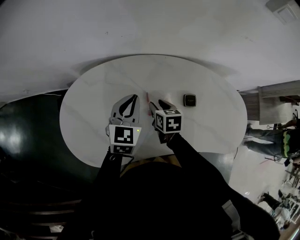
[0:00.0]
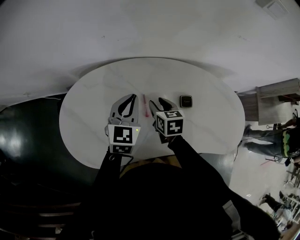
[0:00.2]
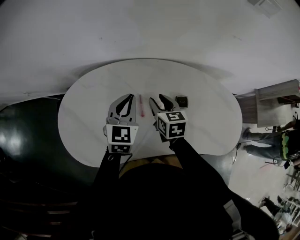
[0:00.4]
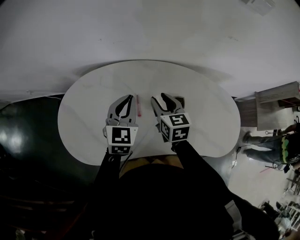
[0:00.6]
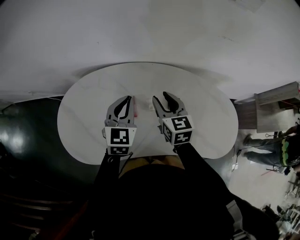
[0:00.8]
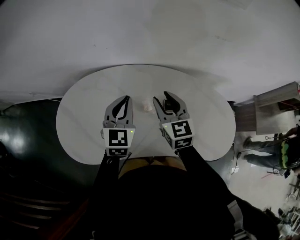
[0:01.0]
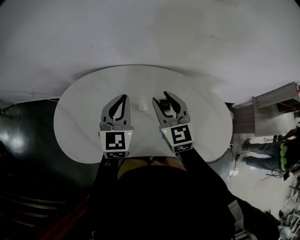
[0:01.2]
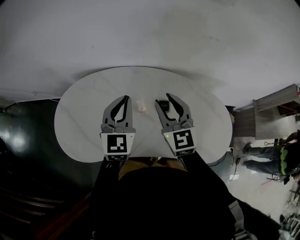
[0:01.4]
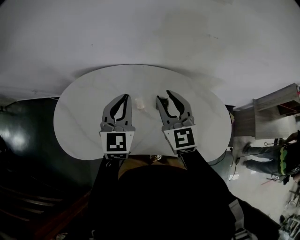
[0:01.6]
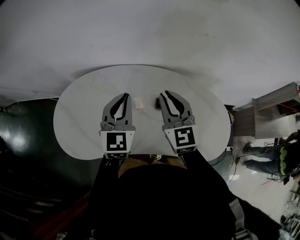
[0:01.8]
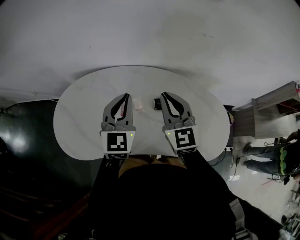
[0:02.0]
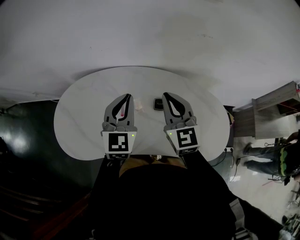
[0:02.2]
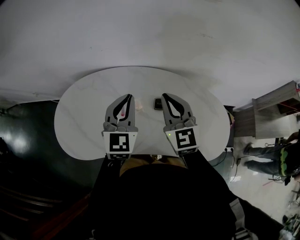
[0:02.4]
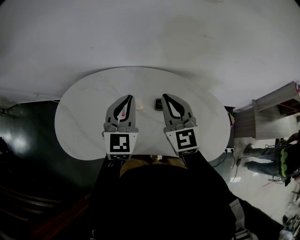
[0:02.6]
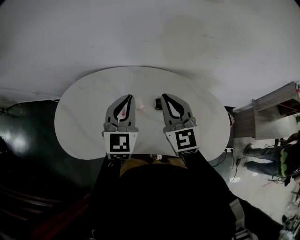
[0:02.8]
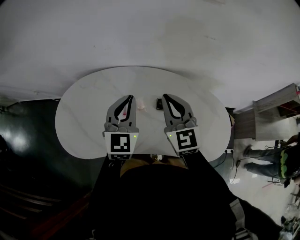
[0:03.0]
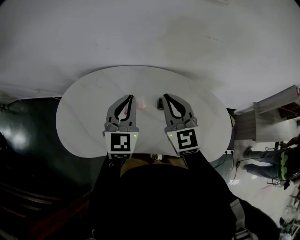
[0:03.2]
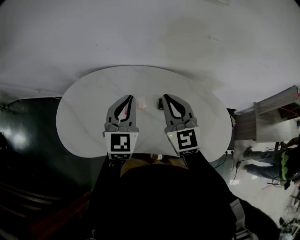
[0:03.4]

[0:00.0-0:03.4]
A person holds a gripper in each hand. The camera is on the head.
0.0 to 1.6 s: The right gripper is displaced upward and to the right by about 30 cm, and tips its fingers upward by about 40 degrees, while the left gripper moves to the right and upward, approximately 15 cm.
1.6 to 3.4 s: The right gripper closes its fingers.

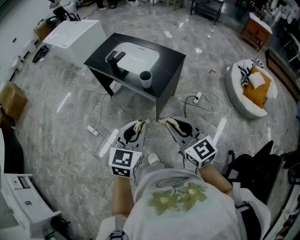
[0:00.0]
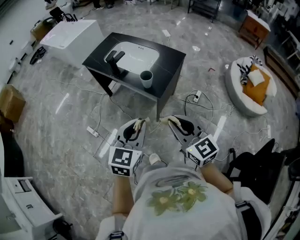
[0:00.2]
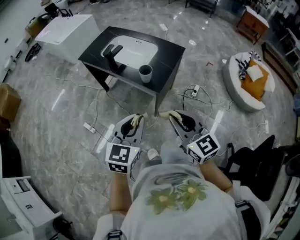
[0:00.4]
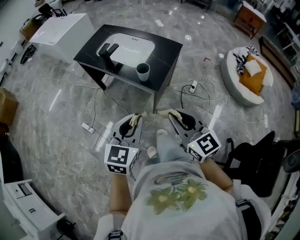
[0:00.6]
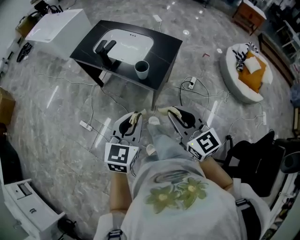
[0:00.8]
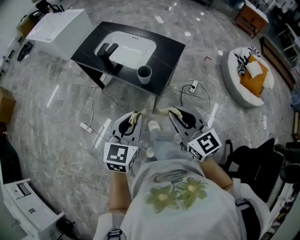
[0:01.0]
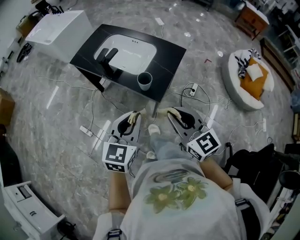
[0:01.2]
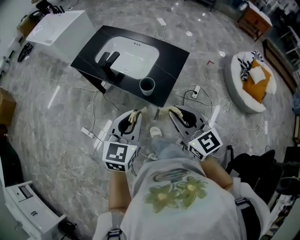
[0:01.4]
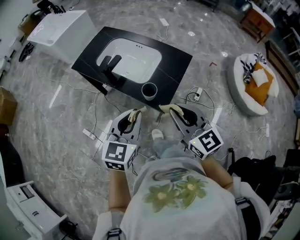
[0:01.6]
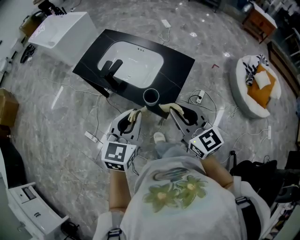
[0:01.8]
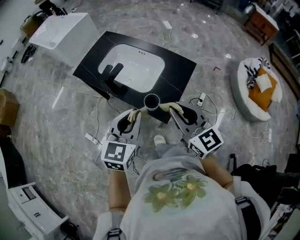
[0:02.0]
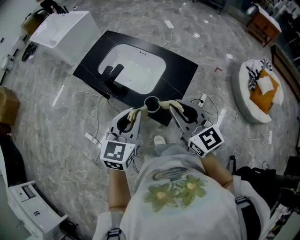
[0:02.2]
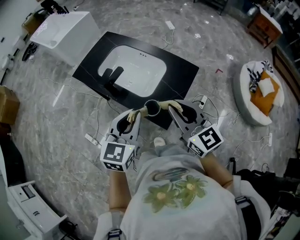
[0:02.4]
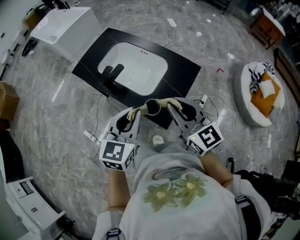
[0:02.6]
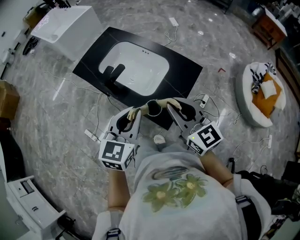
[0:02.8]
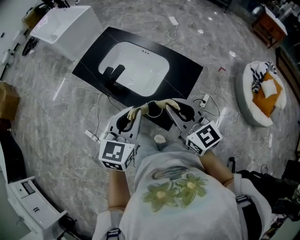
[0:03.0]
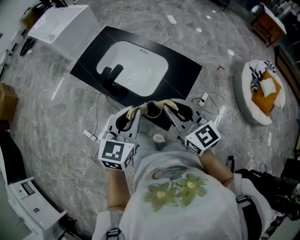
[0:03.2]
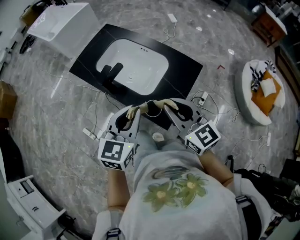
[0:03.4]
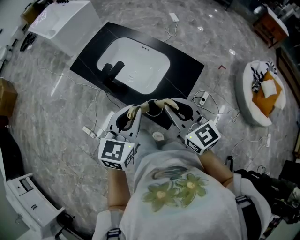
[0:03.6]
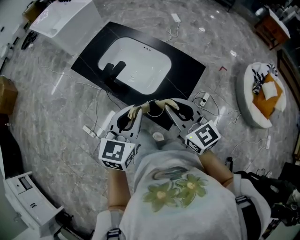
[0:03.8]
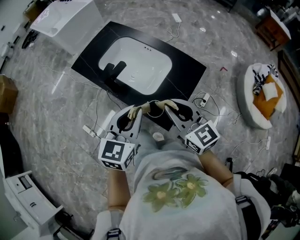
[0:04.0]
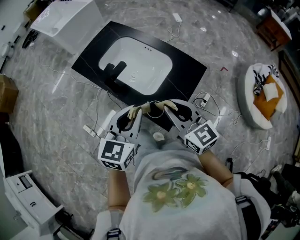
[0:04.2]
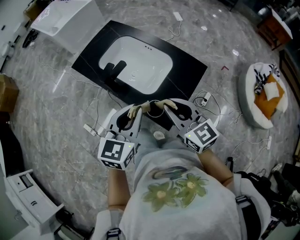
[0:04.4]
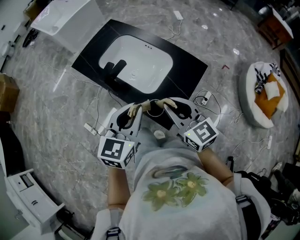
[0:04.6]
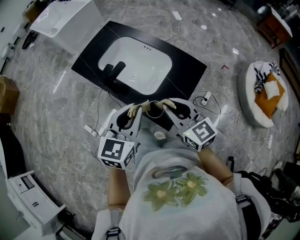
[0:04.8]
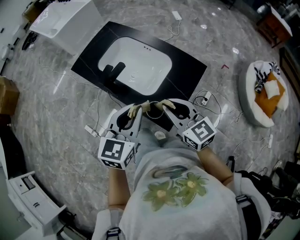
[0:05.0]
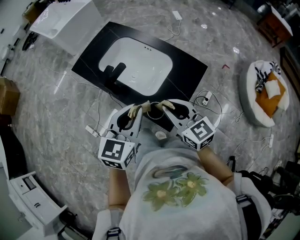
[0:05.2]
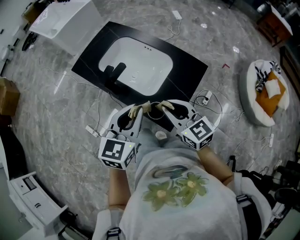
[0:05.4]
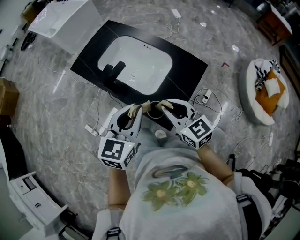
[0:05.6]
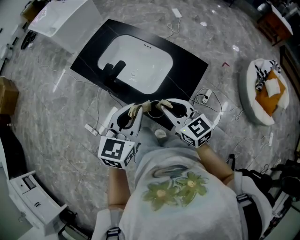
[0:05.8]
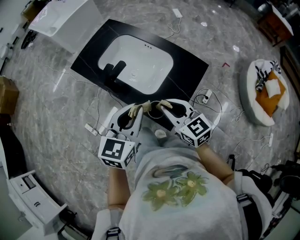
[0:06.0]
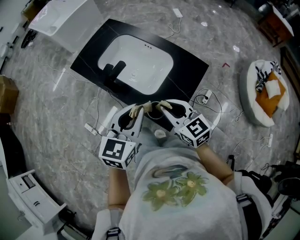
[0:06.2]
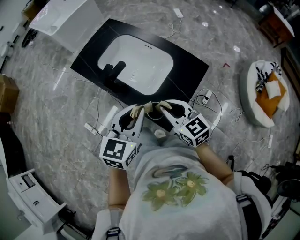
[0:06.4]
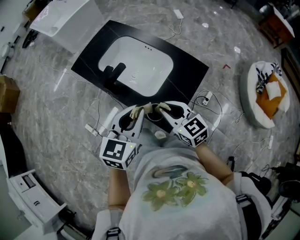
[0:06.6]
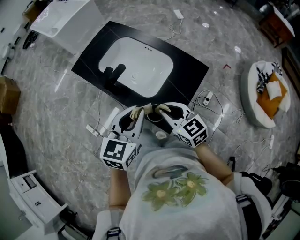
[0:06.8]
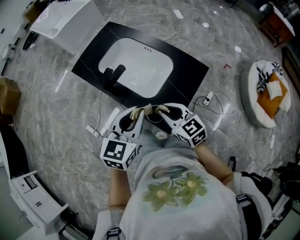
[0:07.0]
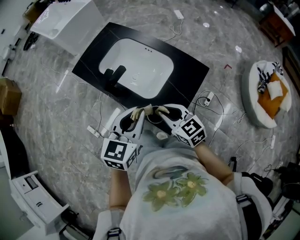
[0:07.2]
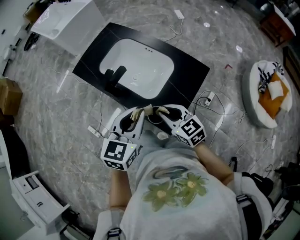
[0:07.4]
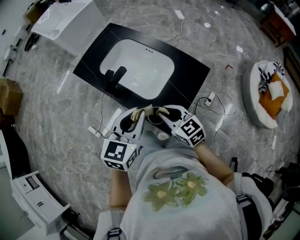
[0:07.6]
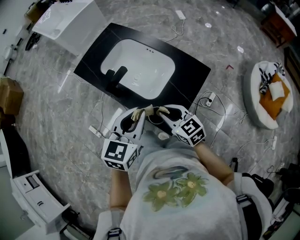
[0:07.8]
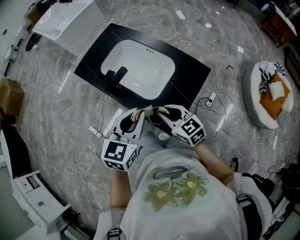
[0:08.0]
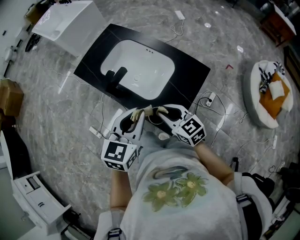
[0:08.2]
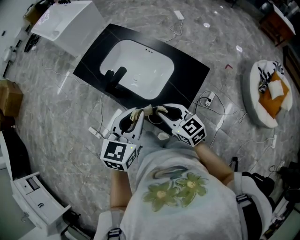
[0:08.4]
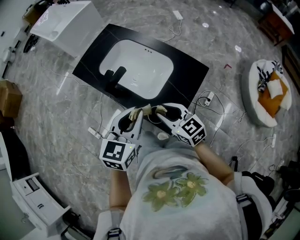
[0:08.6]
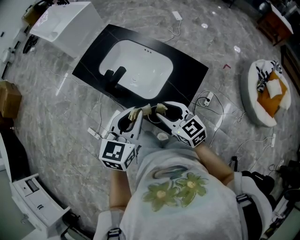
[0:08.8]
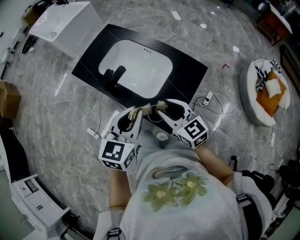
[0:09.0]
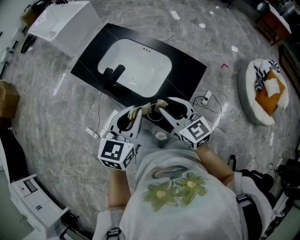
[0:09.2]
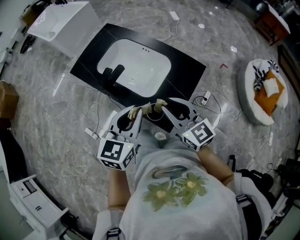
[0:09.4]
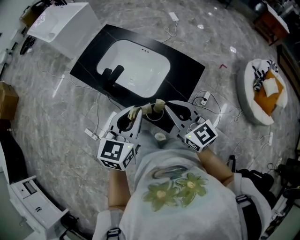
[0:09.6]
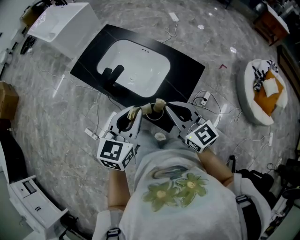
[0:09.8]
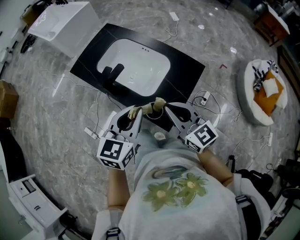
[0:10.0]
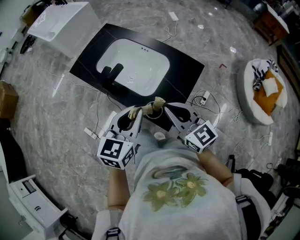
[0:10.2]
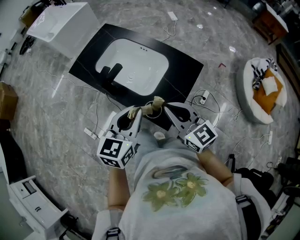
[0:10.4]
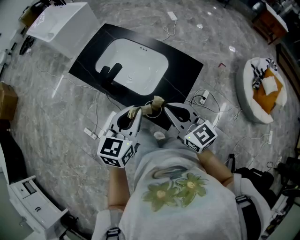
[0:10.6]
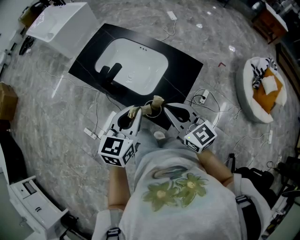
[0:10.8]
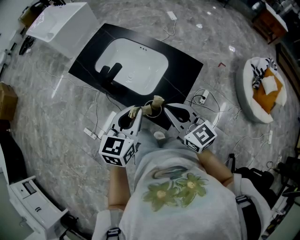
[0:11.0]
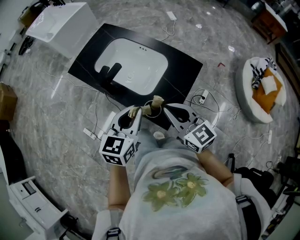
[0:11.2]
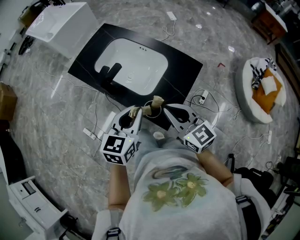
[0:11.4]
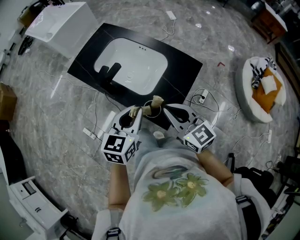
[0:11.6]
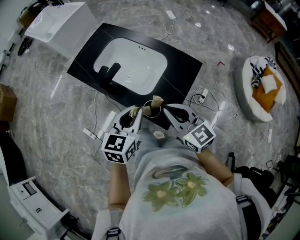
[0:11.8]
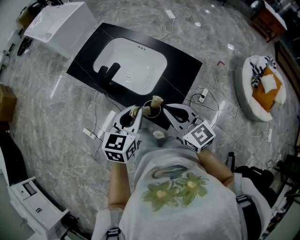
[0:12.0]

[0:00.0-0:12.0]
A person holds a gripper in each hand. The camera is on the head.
0.0 to 1.6 s: Both grippers travel together forward, roughly 25 cm.
1.6 to 3.0 s: The two grippers go approximately 15 cm forward.
3.0 to 4.4 s: There are only small adjustments of the grippers.
4.4 to 6.0 s: The right gripper moves downward, roughly 5 cm.
6.0 to 7.6 s: The right gripper travels downward by approximately 5 cm.
7.6 to 9.0 s: The grippers move only a little.
9.0 to 10.4 s: The right gripper moves some 5 cm, and closes its fingers.
10.4 to 12.0 s: The grippers move only a little.

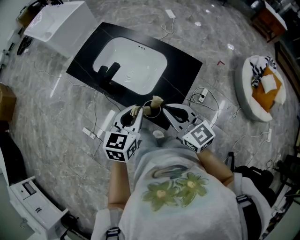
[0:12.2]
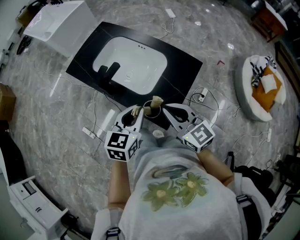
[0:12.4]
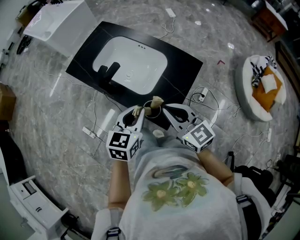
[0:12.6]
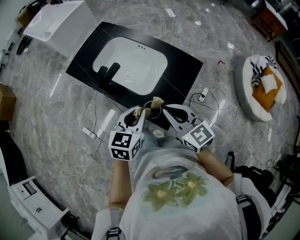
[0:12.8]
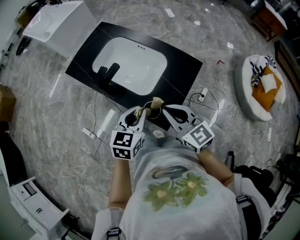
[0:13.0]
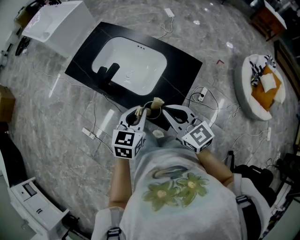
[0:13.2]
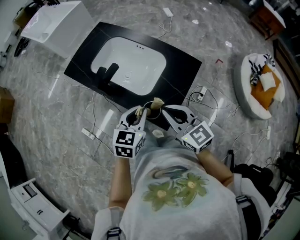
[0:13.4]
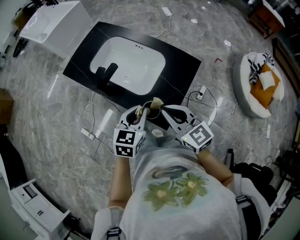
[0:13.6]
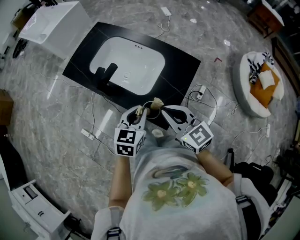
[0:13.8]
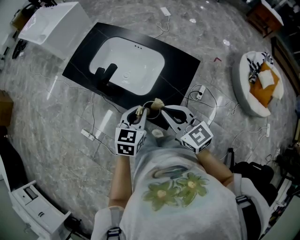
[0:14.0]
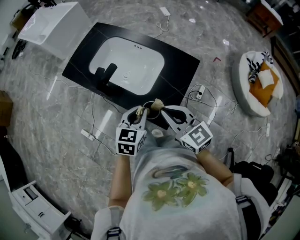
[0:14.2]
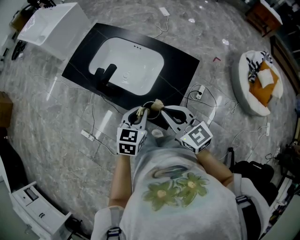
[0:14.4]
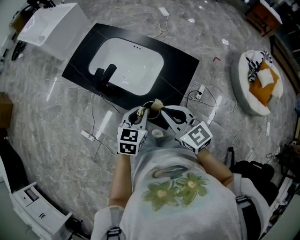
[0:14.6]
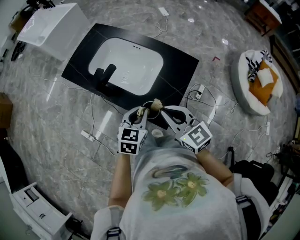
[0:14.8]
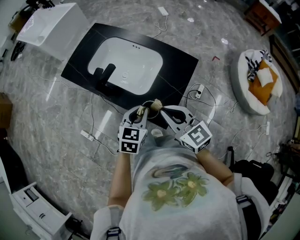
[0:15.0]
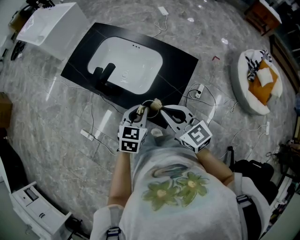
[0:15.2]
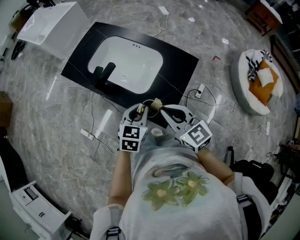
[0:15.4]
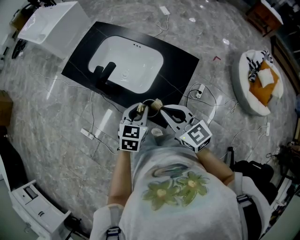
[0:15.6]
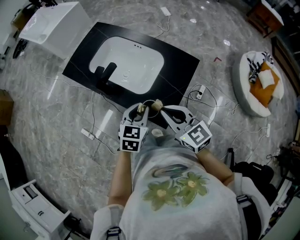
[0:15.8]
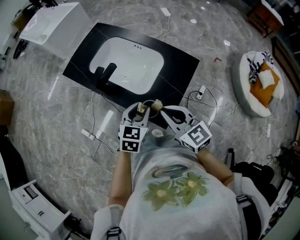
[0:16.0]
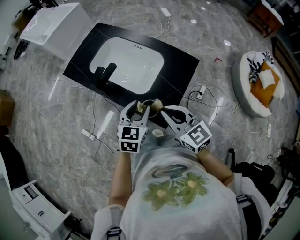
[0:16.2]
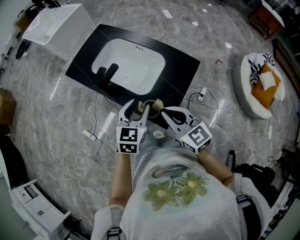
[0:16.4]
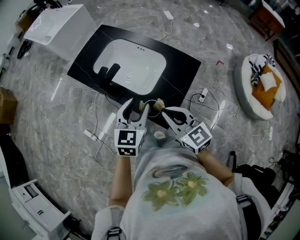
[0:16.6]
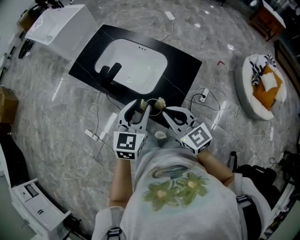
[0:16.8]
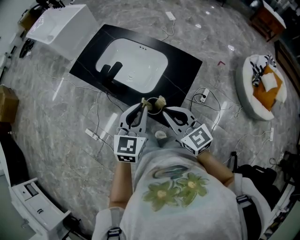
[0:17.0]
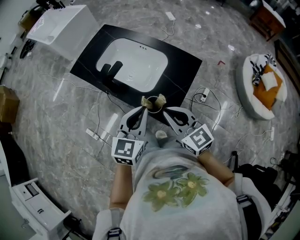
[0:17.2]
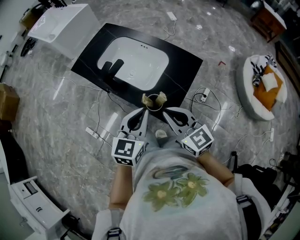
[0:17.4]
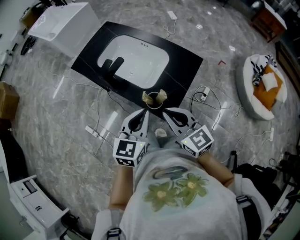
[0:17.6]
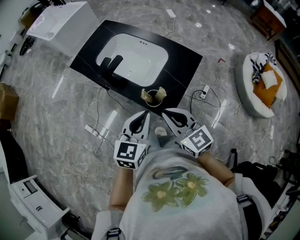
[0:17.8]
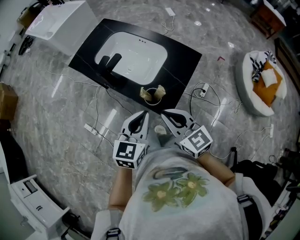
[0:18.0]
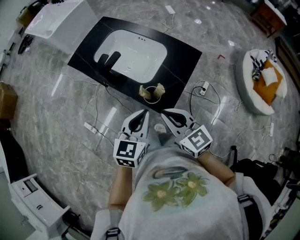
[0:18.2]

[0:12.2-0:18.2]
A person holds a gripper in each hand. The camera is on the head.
12.2 to 13.8 s: The left gripper shifts approximately 5 cm downward.
13.8 to 15.2 s: The grippers stay close to where they were, moving slightly.
15.2 to 16.6 s: The left gripper travels upward by about 10 cm, and opens its fingers.
16.6 to 18.2 s: The right gripper goes some 5 cm backward; the left gripper heads backward, covering some 10 cm, and closes up.

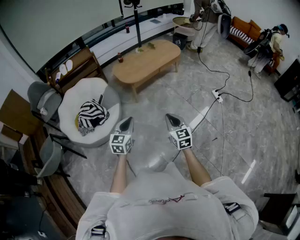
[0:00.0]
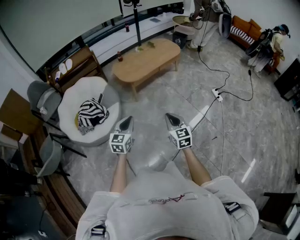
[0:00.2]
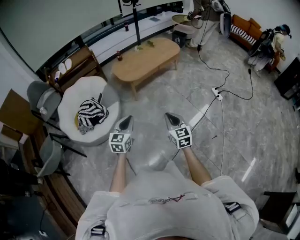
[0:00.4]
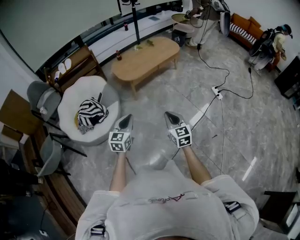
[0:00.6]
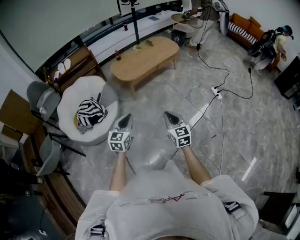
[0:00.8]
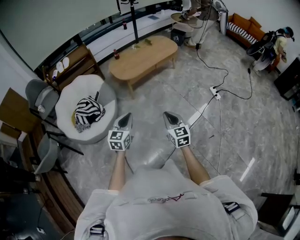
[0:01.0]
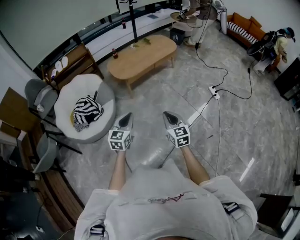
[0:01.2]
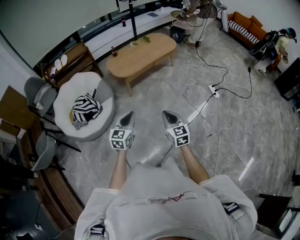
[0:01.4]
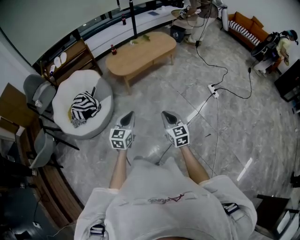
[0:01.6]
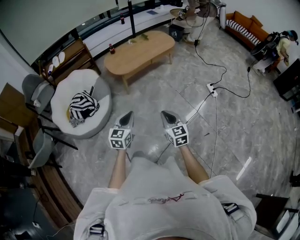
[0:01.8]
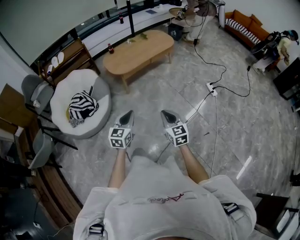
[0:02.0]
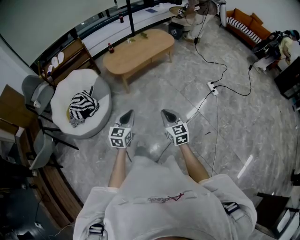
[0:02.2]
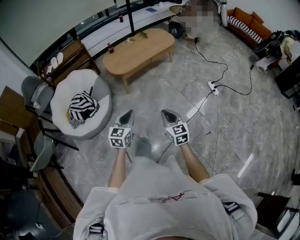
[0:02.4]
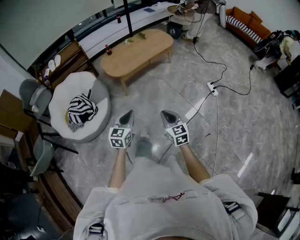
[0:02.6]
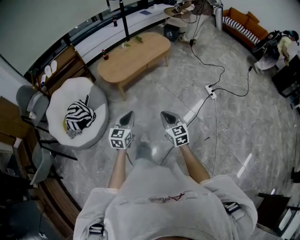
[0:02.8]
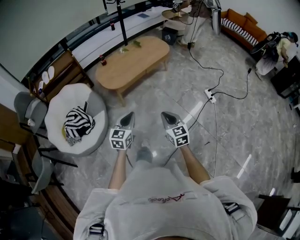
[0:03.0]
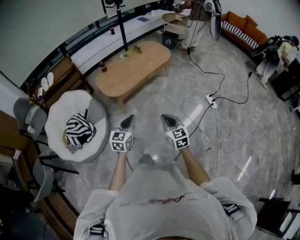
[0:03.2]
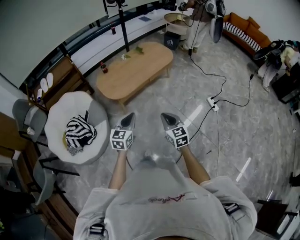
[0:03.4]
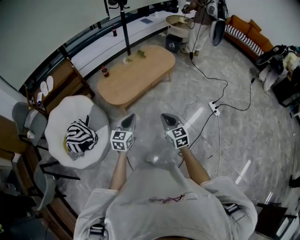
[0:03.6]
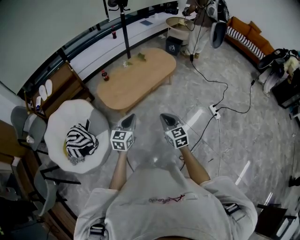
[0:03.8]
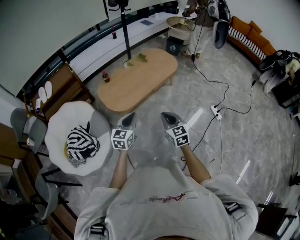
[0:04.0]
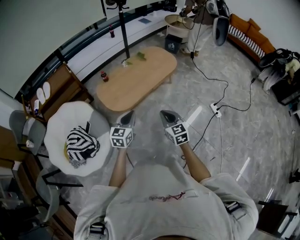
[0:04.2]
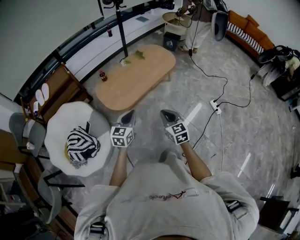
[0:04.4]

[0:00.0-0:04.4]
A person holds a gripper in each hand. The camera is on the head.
0.0 to 1.4 s: Both grippers travel together to the right, some 10 cm.
1.4 to 3.0 s: Both grippers move forward, about 20 cm.
3.0 to 4.4 s: The two grippers go some 30 cm forward.
